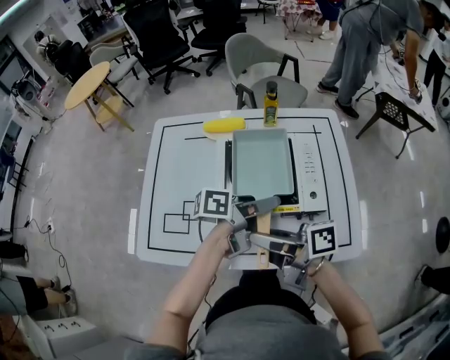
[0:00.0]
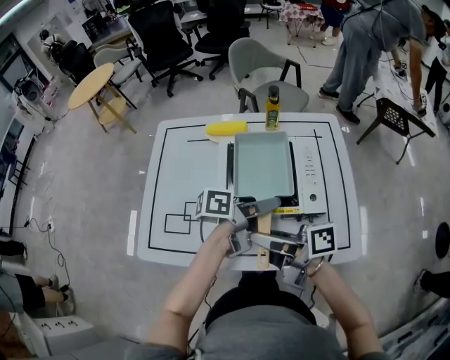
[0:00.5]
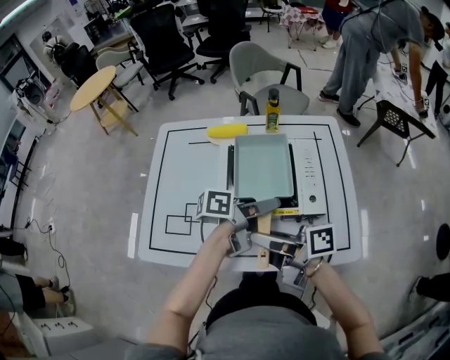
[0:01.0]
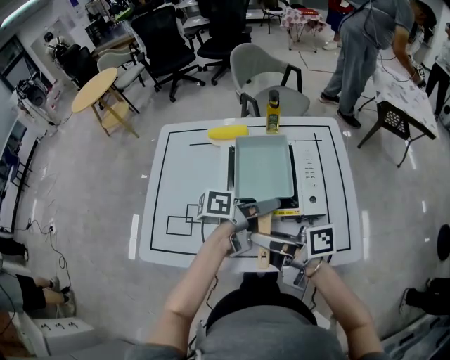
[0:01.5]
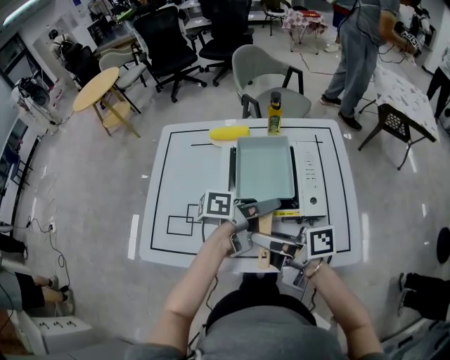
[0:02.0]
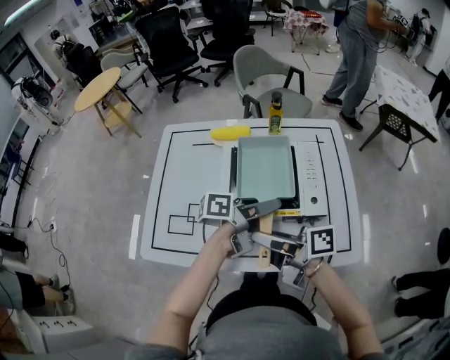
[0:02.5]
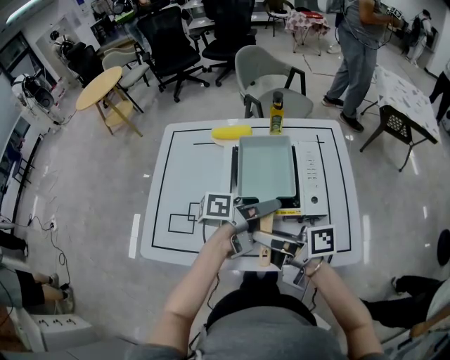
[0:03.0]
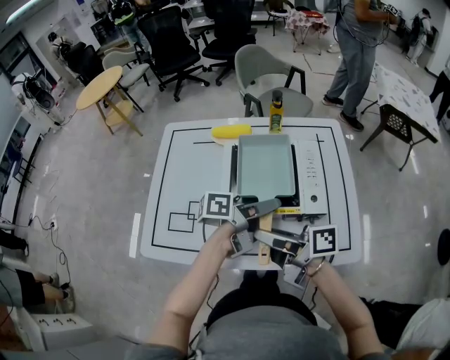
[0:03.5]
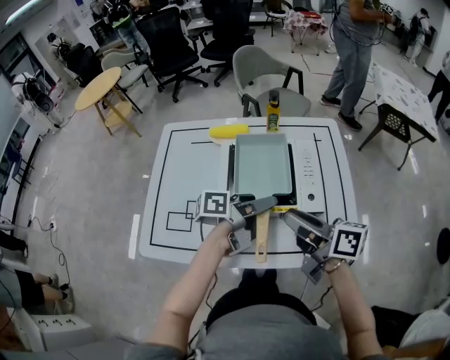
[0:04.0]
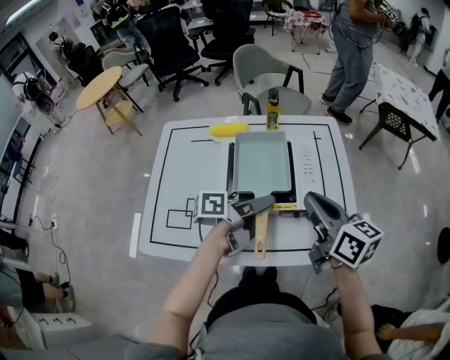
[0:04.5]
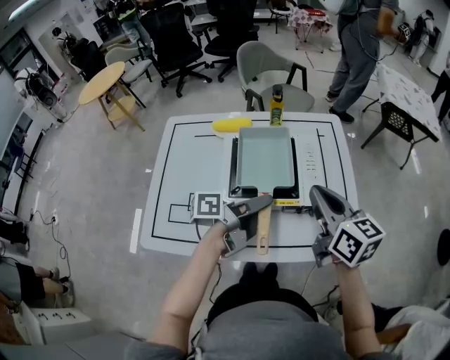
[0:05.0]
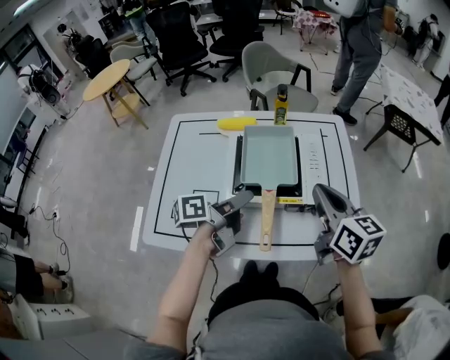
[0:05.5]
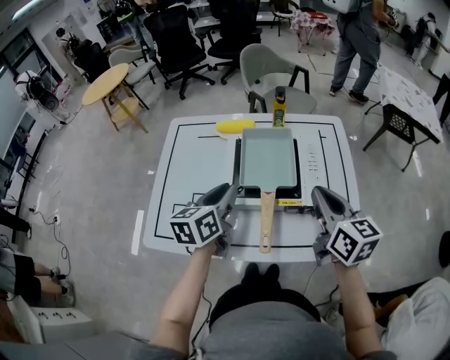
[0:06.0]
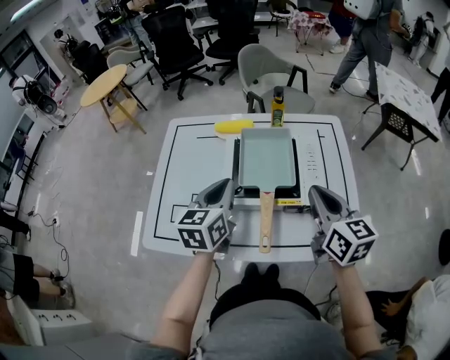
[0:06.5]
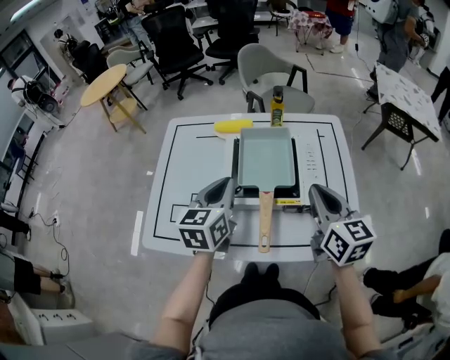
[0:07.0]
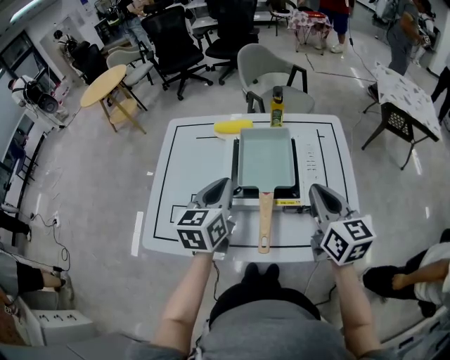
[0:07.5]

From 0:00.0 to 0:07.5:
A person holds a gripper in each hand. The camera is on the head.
From 0:00.0 to 0:02.0: Both grippers stay put.
From 0:02.0 to 0:04.0: The right gripper moves approximately 10 cm, and rotates roughly 30 degrees.
From 0:04.0 to 0:05.5: The left gripper shifts some 10 cm to the left. Meanwhile the right gripper ends up approximately 5 cm from where it was, rotates some 40 degrees, and closes its fingers.
From 0:05.5 to 0:07.5: The left gripper goes approximately 5 cm upward, rotates around the line of its fingers by some 50 degrees, clockwise from behind, and closes up.

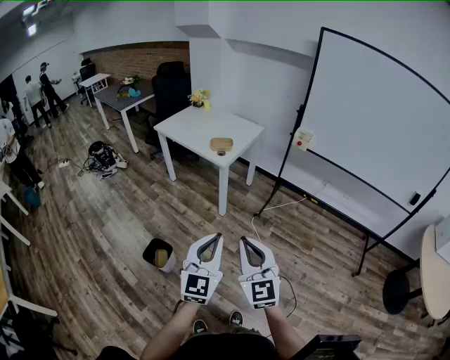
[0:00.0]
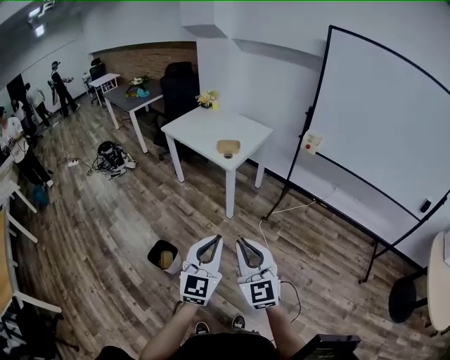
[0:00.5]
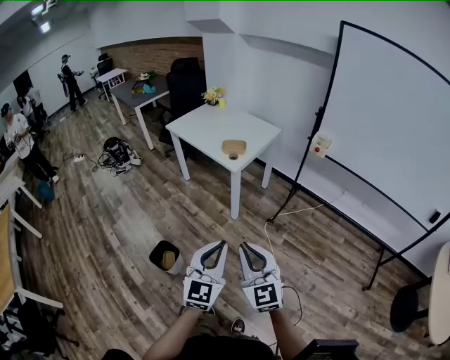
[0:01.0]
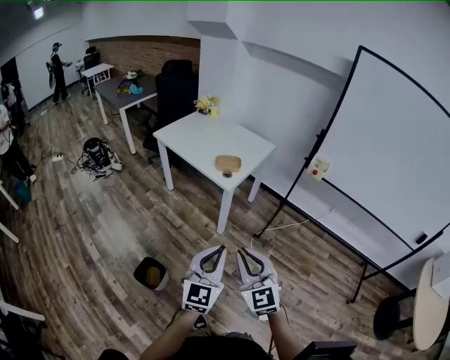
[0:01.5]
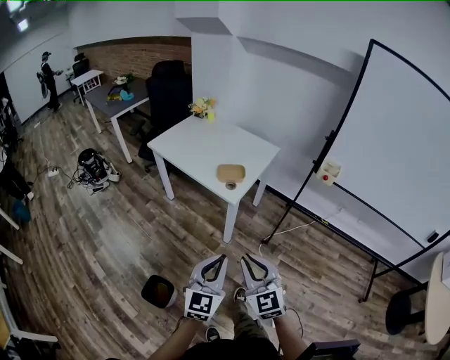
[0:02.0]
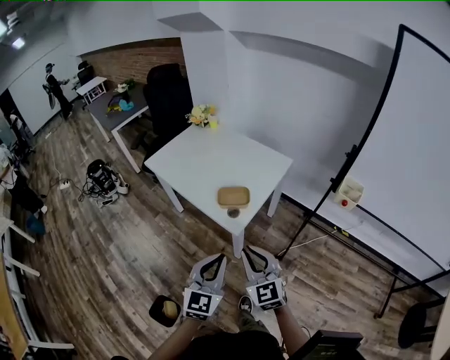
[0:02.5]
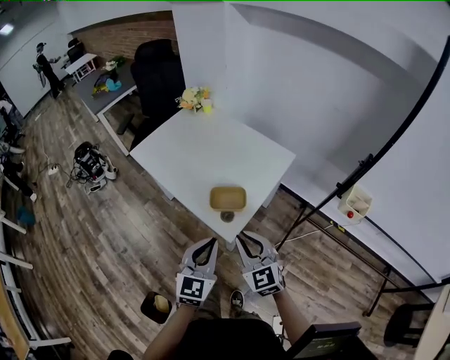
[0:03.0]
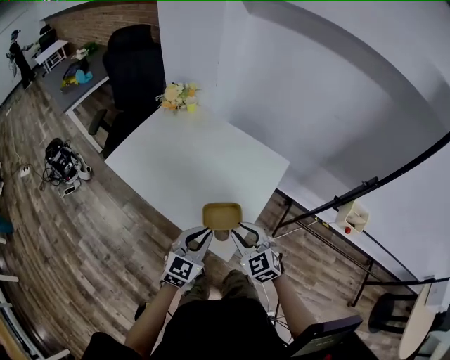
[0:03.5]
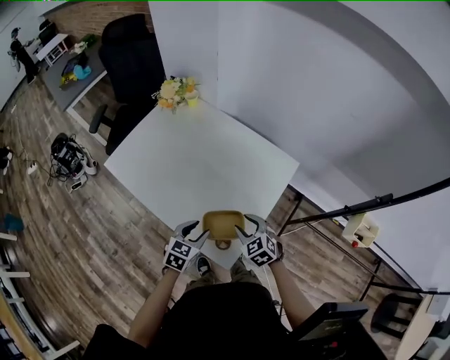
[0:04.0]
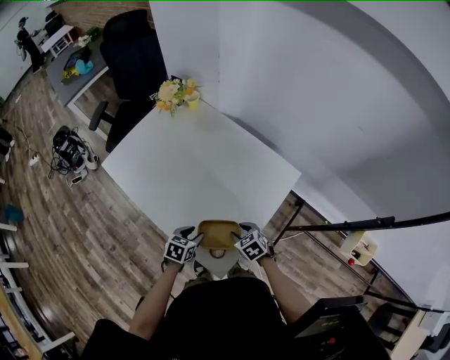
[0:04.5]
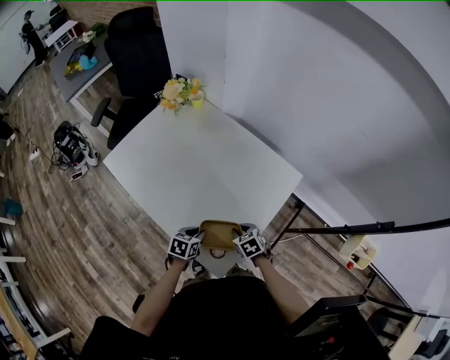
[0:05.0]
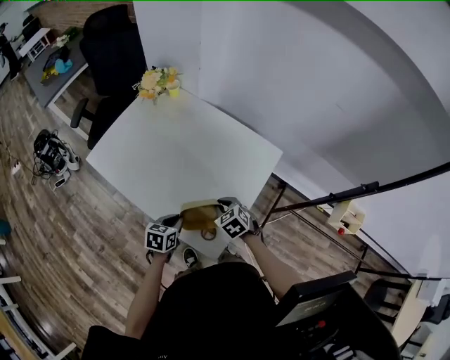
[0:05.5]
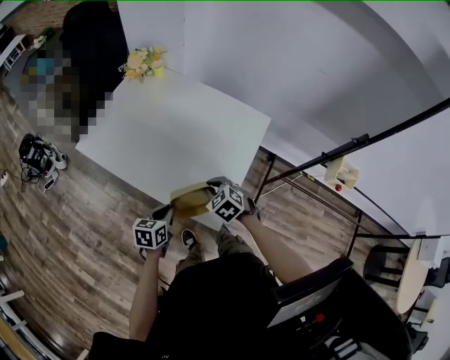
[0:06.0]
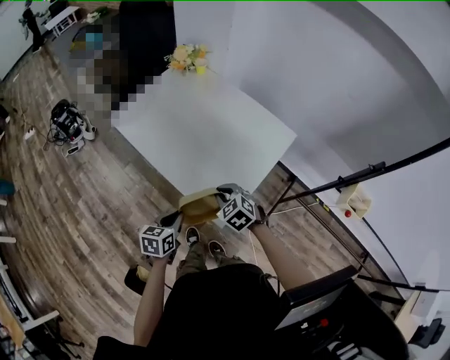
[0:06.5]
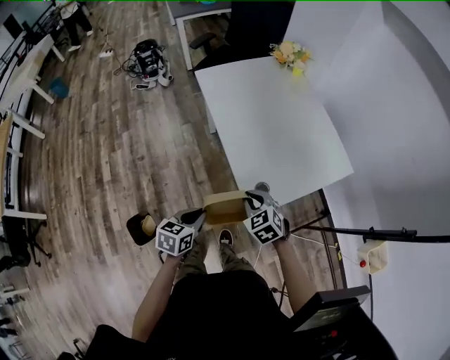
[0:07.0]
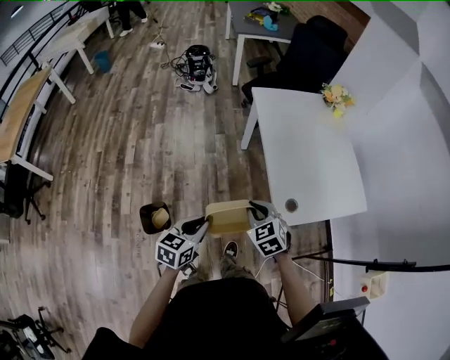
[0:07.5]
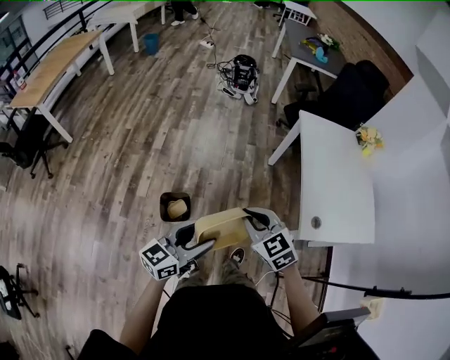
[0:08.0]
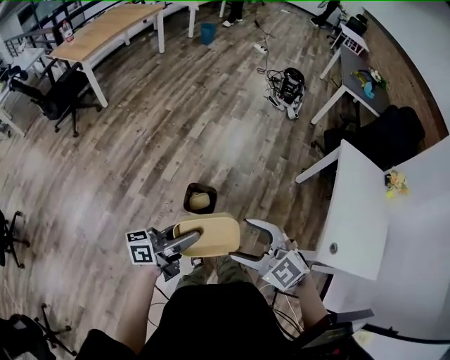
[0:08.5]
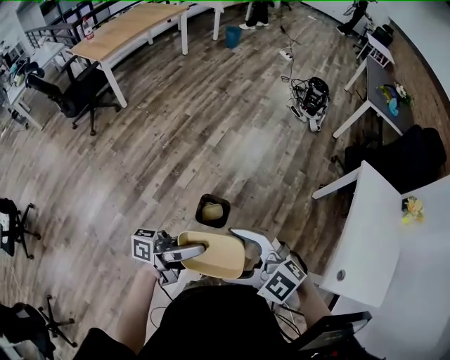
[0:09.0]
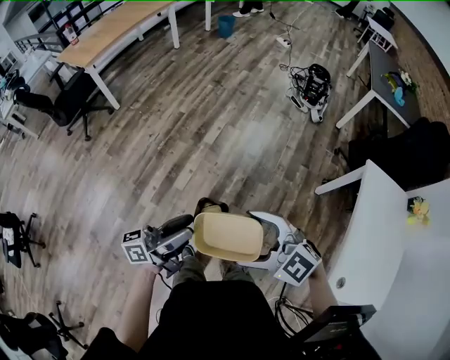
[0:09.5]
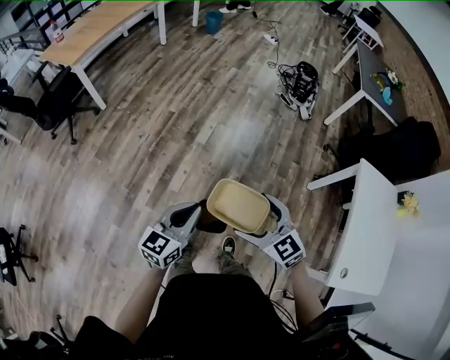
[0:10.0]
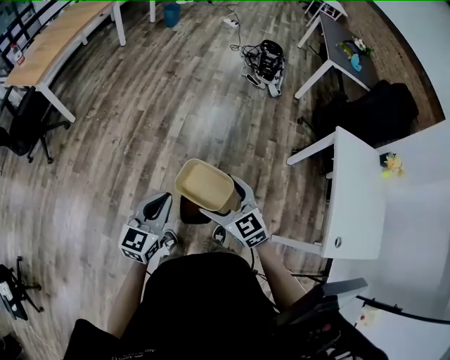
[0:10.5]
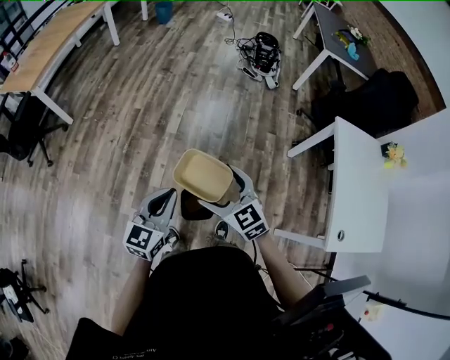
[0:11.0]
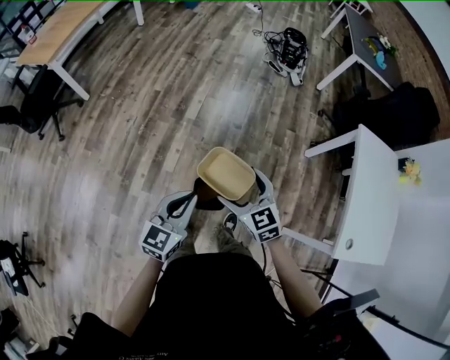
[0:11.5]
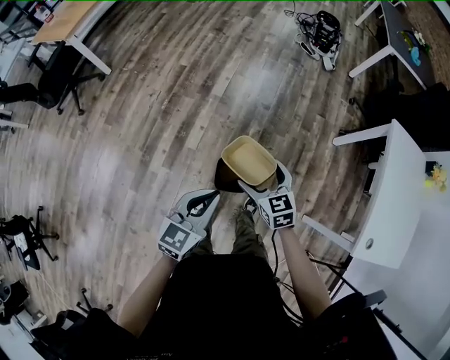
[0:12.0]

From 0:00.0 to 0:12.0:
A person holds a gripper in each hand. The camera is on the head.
From 0:00.0 to 0:02.0: Both grippers move forward, approximately 35 cm.
From 0:02.0 to 0:04.0: The two grippers travel together, forward, some 60 cm. The right gripper tips its fingers downward by about 30 degrees; the left gripper moves downward, roughly 25 cm, points its fingers about 40 degrees further downward, and opens.
From 0:04.0 to 0:06.0: The right gripper goes approximately 5 cm to the left, and moves about 10 cm downward and comes back. Meanwhile the left gripper moves to the left and backward, approximately 10 cm, reaches roughly 10 cm downward, then returns, swivels some 20 degrees, and closes up.
From 0:06.0 to 0:08.0: The pair of grippers is taken roughly 50 cm. The right gripper turns by about 70 degrees. Meanwhile the left gripper tips its fingers upward by approximately 40 degrees, and opens.
From 0:08.0 to 0:10.0: The right gripper ends up some 30 cm from where it was, swivels some 20 degrees, and opens its fingers. The left gripper changes place by roughly 35 cm, swivels approximately 30 degrees, and closes.
From 0:10.0 to 0:12.0: The right gripper goes roughly 15 cm downward, and rotates approximately 30 degrees; the left gripper goes about 5 cm downward.

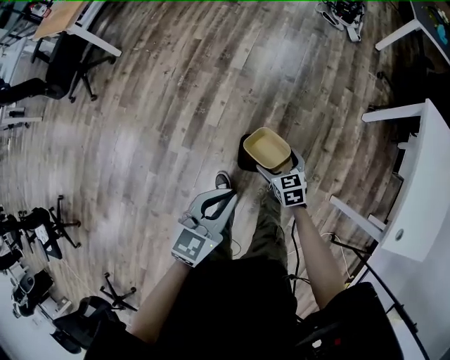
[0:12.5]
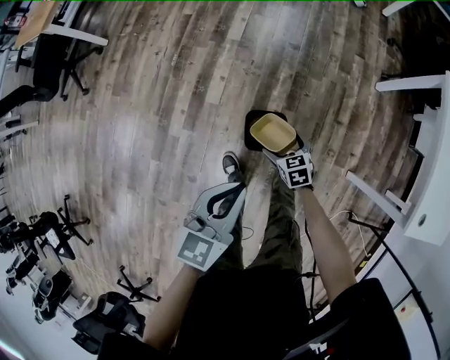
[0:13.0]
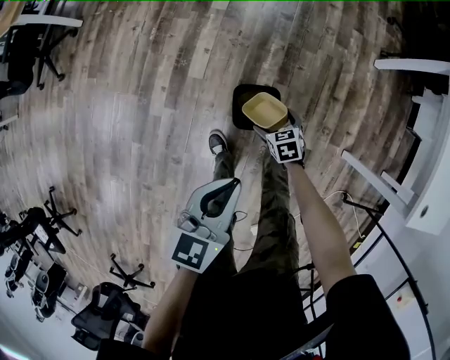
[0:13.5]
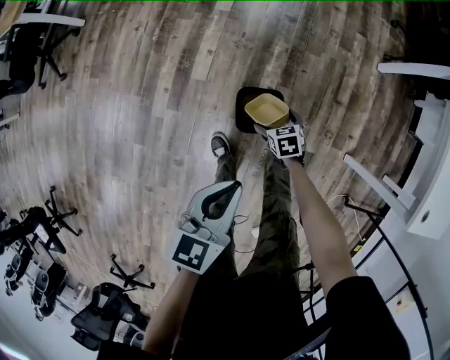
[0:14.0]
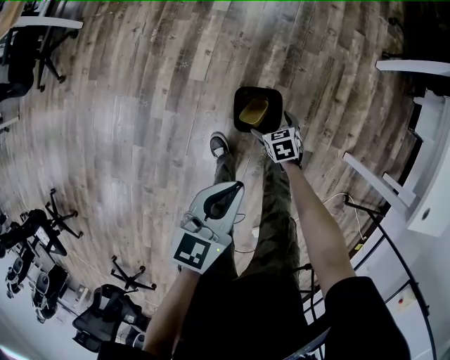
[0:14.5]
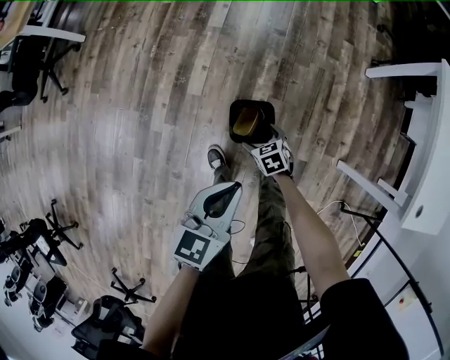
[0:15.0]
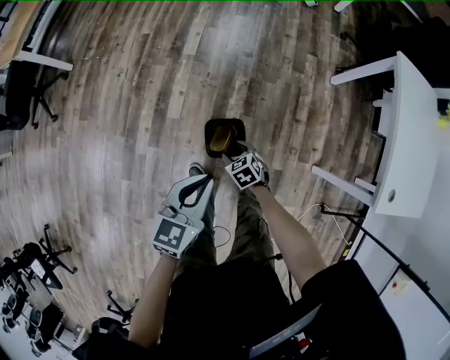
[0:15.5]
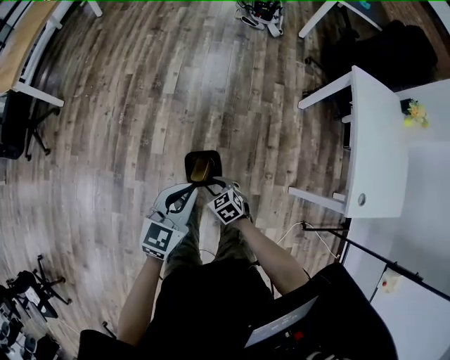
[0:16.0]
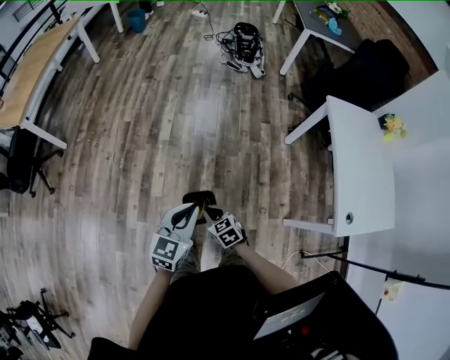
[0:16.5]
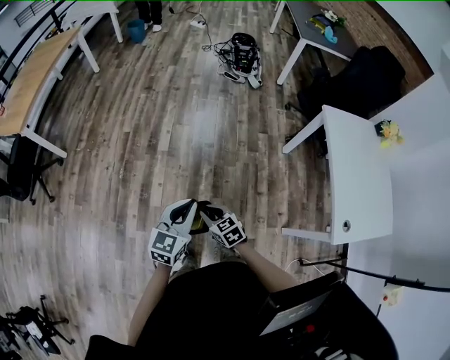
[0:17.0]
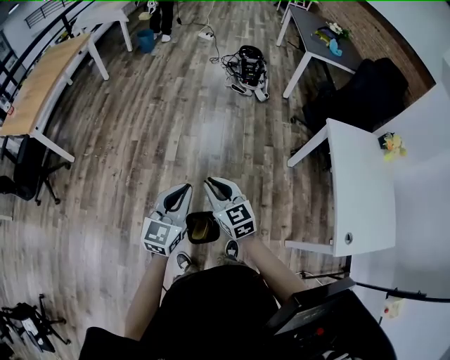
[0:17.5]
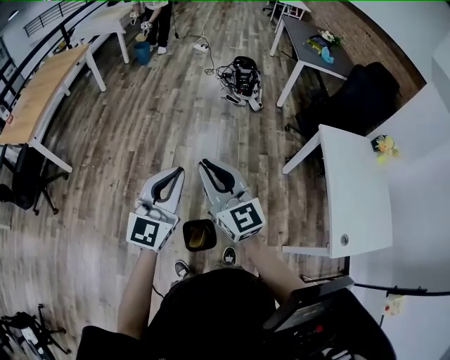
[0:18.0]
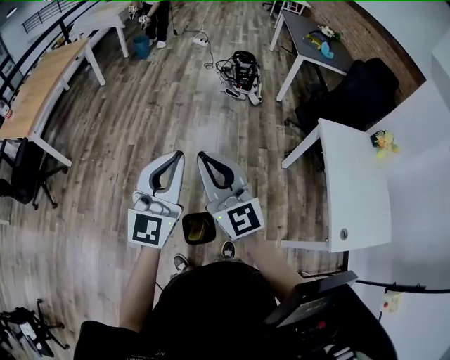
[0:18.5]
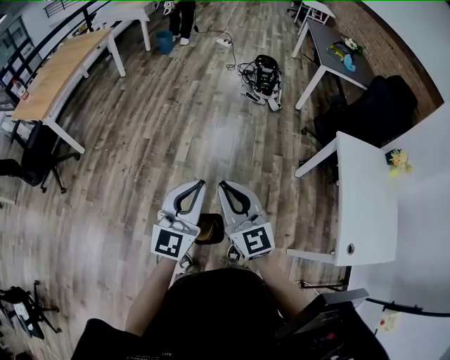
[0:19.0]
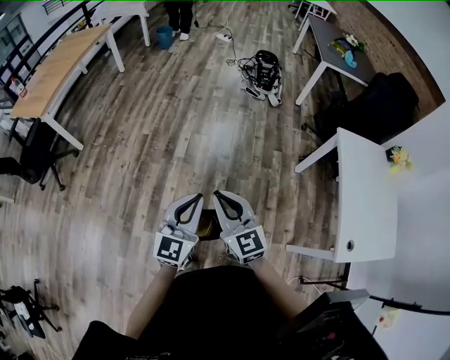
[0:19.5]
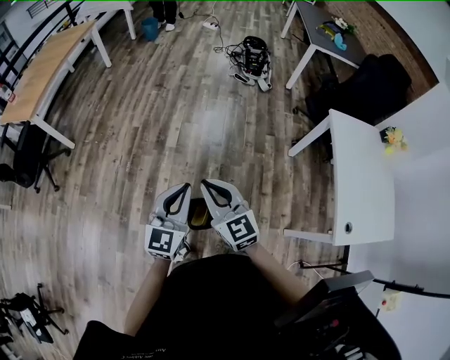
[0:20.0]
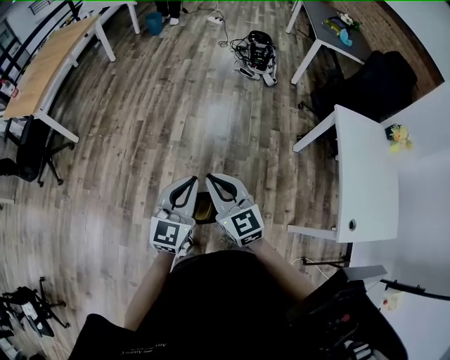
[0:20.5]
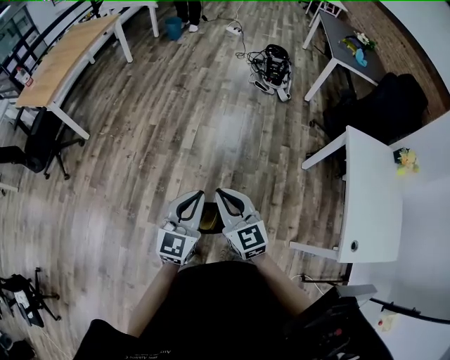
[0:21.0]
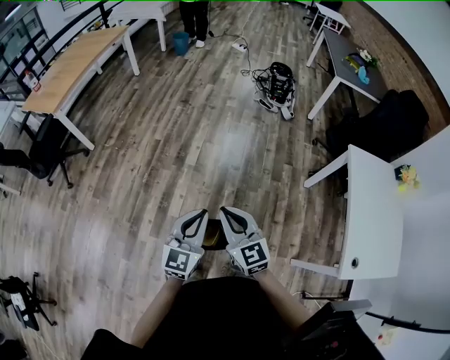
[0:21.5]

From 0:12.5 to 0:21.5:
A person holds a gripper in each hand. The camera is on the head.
From 0:12.5 to 0:14.5: The right gripper shifts approximately 25 cm downward. The left gripper moves downward, about 15 cm.
From 0:14.5 to 0:17.0: The left gripper goes about 25 cm upward, forward and to the right, and changes its angle by roughly 30 degrees, while the right gripper travels upward by some 35 cm, rotates some 20 degrees, and closes up.
From 0:17.0 to 0:19.5: The right gripper is displaced upward by roughly 25 cm, and points its fingers roughly 30 degrees further upward; the left gripper heads upward, covering roughly 10 cm.
From 0:19.5 to 0:21.5: The grippers stay close to where they were, moving slightly.
